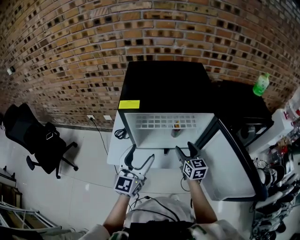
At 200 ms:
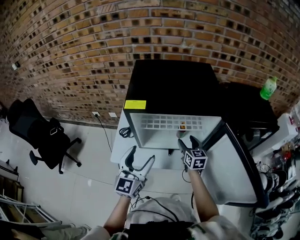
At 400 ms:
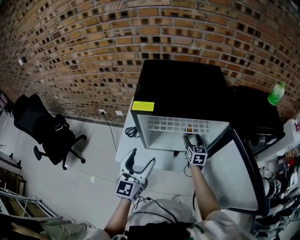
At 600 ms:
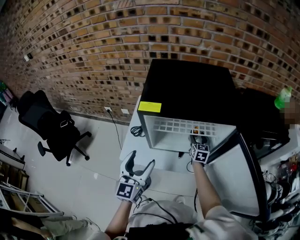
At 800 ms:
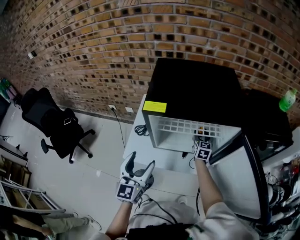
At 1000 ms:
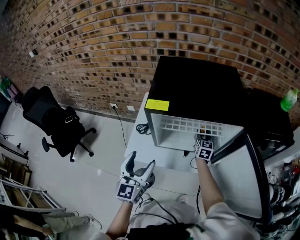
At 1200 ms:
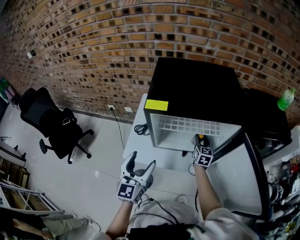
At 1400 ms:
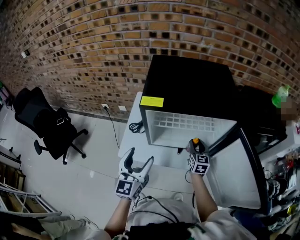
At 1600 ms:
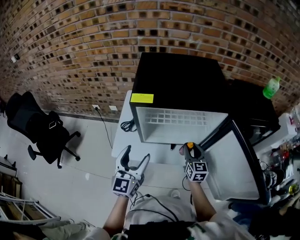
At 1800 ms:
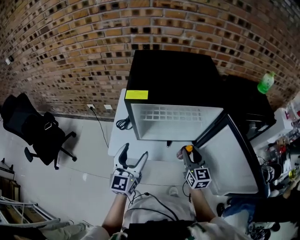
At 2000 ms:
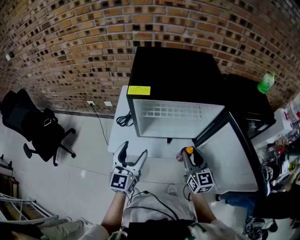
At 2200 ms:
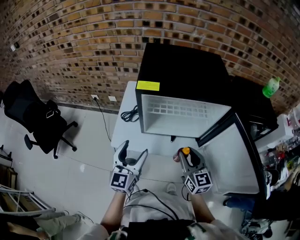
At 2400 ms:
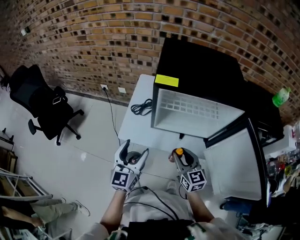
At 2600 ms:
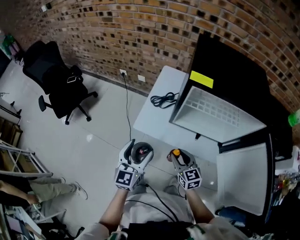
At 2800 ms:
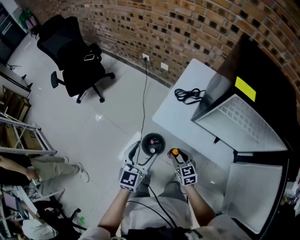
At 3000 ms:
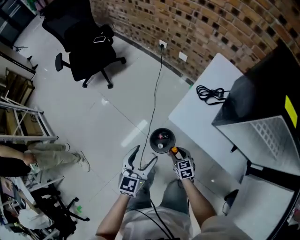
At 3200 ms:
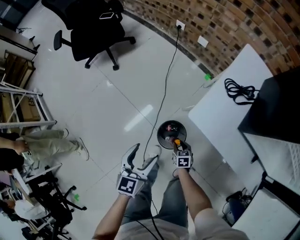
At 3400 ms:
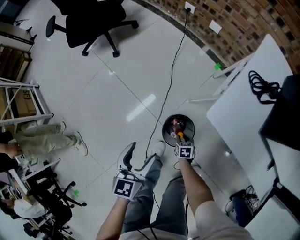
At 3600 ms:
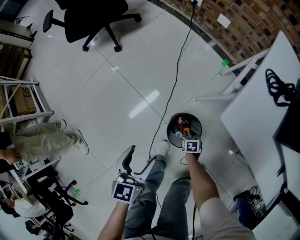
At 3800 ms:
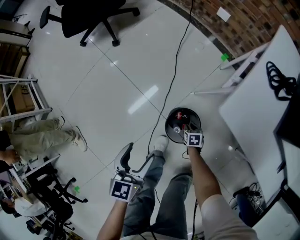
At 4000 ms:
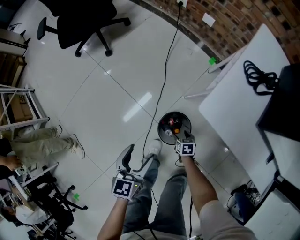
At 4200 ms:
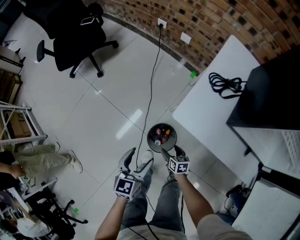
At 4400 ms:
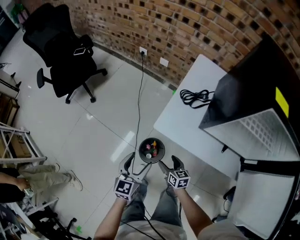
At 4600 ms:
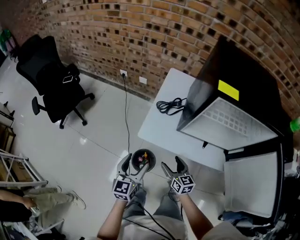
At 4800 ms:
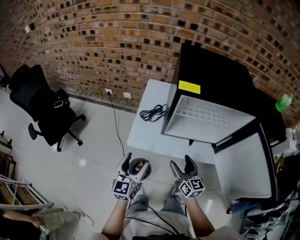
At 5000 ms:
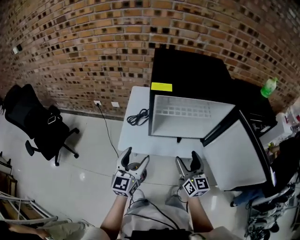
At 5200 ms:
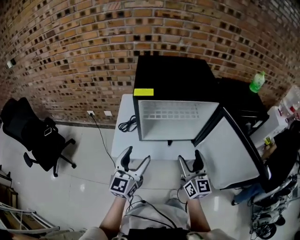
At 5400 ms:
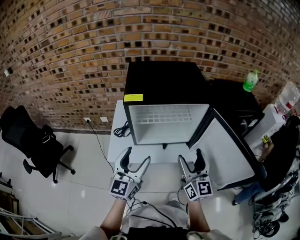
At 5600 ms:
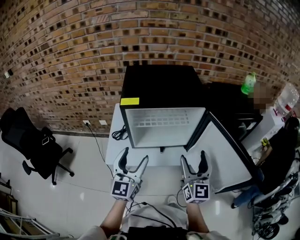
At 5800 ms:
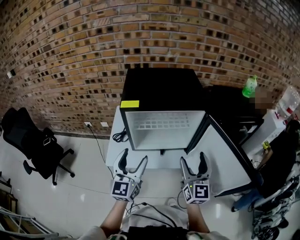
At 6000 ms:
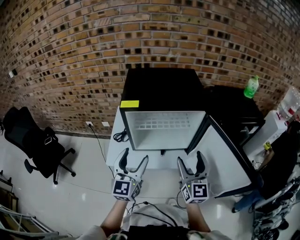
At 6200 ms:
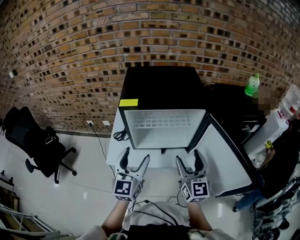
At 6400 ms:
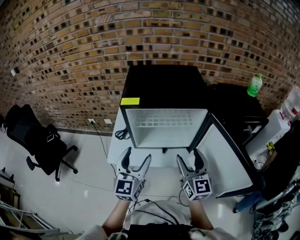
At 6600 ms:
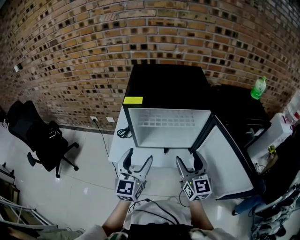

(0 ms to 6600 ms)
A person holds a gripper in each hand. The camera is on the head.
0 ms - 1600 ms: The right gripper moves approximately 15 cm forward and comes back. Meanwhile the left gripper heads to the left, covering roughly 5 cm.
1600 ms - 3200 ms: The left gripper goes roughly 35 cm downward, and rotates approximately 40 degrees. Meanwhile the right gripper moves downward, roughly 50 cm, and angles its fingers downward, by about 40 degrees.
3200 ms - 5000 ms: The left gripper goes approximately 30 cm upward, and swivels some 40 degrees, while the right gripper shifts approximately 60 cm upward, tips its fingers upward by roughly 60 degrees, and opens up.
5000 ms - 6600 ms: The two grippers go some 15 cm to the right and upward.

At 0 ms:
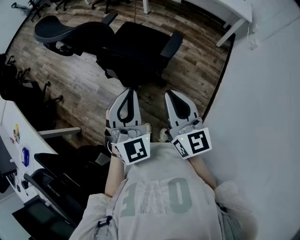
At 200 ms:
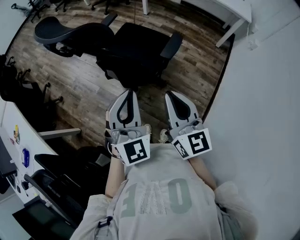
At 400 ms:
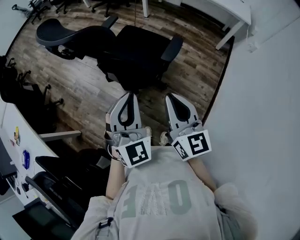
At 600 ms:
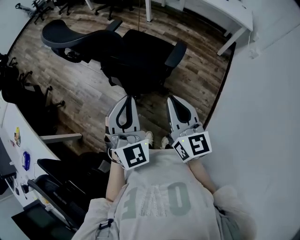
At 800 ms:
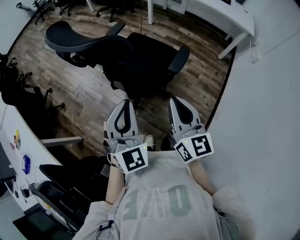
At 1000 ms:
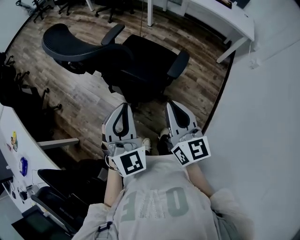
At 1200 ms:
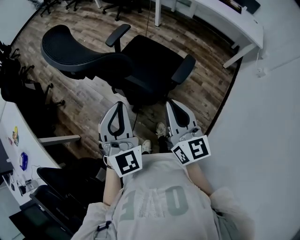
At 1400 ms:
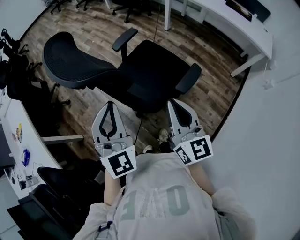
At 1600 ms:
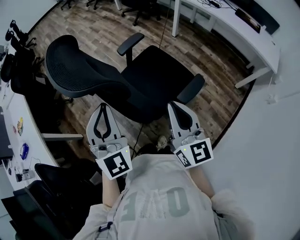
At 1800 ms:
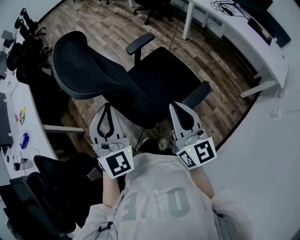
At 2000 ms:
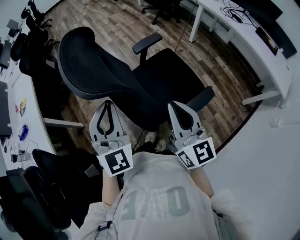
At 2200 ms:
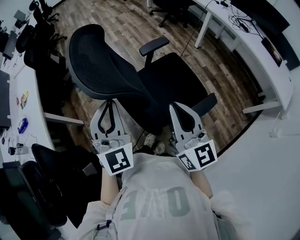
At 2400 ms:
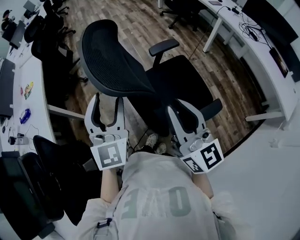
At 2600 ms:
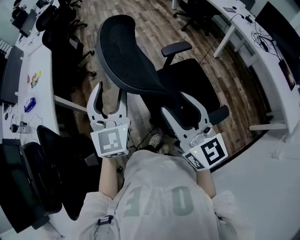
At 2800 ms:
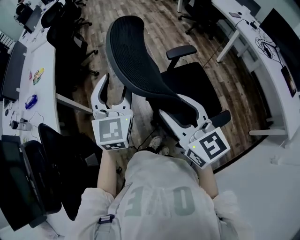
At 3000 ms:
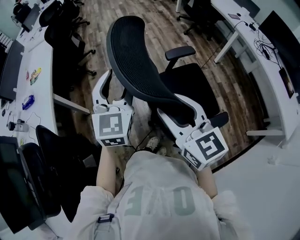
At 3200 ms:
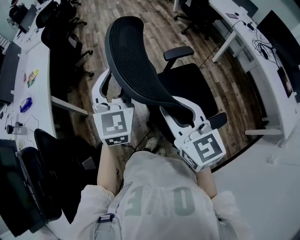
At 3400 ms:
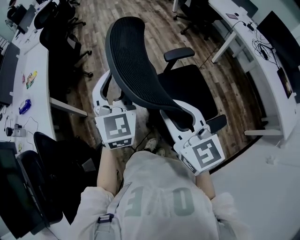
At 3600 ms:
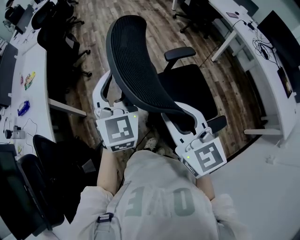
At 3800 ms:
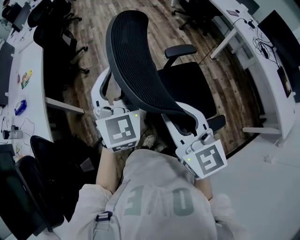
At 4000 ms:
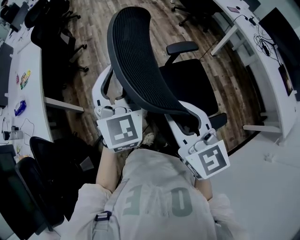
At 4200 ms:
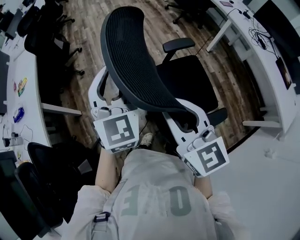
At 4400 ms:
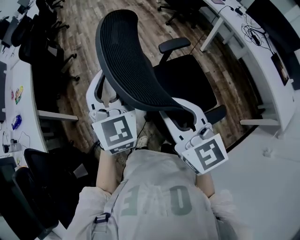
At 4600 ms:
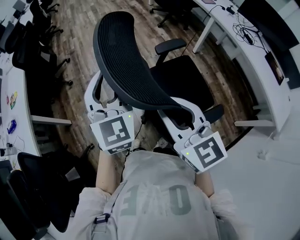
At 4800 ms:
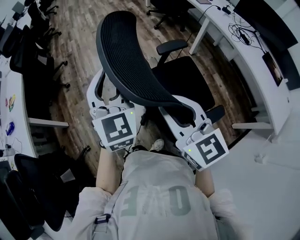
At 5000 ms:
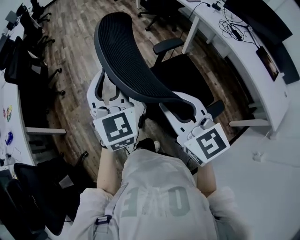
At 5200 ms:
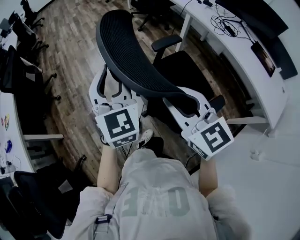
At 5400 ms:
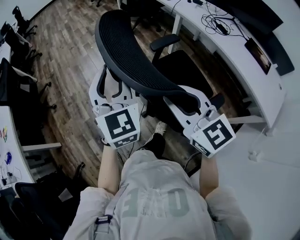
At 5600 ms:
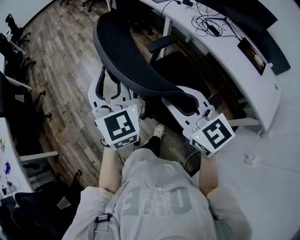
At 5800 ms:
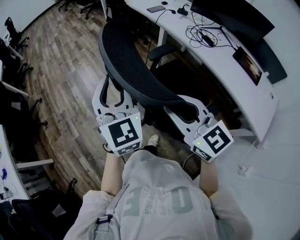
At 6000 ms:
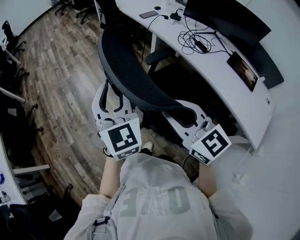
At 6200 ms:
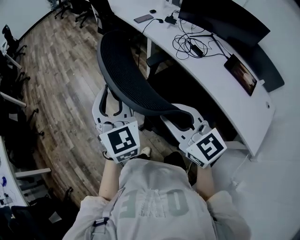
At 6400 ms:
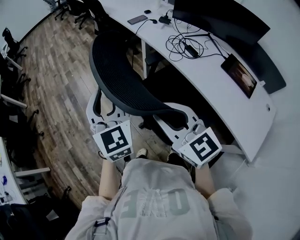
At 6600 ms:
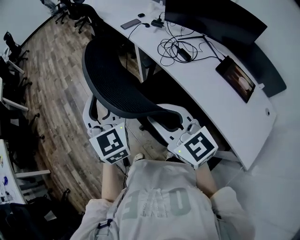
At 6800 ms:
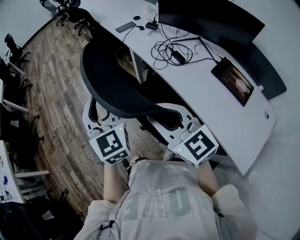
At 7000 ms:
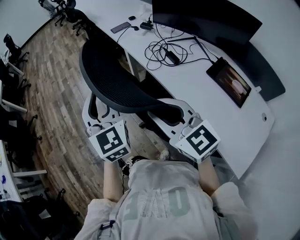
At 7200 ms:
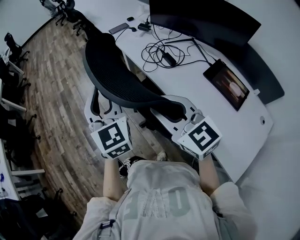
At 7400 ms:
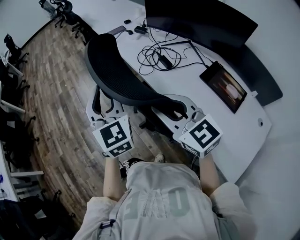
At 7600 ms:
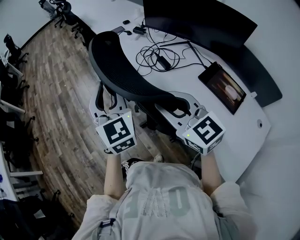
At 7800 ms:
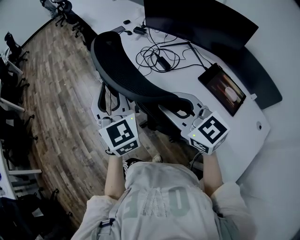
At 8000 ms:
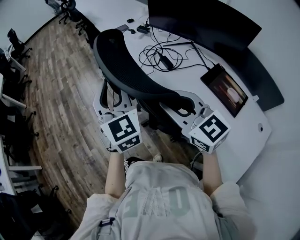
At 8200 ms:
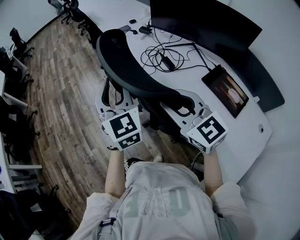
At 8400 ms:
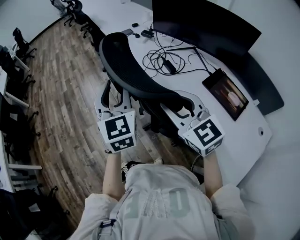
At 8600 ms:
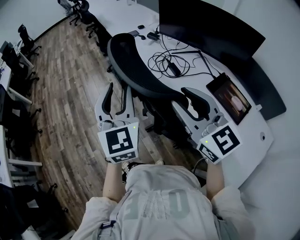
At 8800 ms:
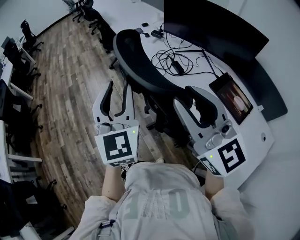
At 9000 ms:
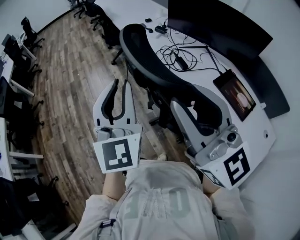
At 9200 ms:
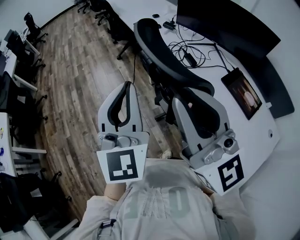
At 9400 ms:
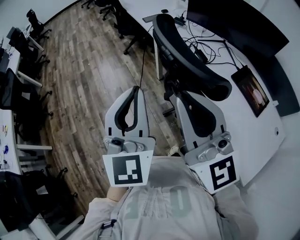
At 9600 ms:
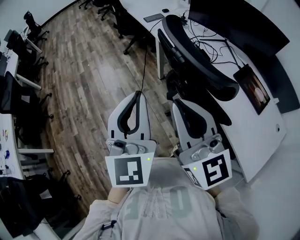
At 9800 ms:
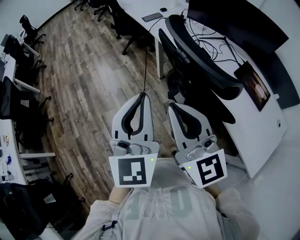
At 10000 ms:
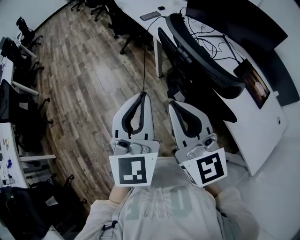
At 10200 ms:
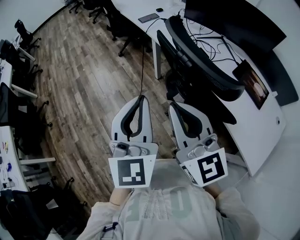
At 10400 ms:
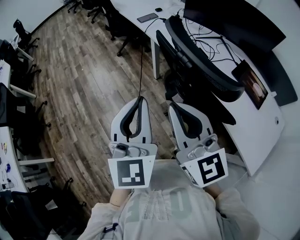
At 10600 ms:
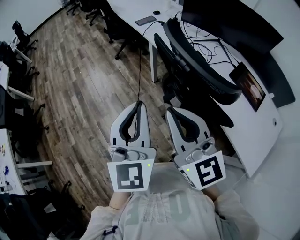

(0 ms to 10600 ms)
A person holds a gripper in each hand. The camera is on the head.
0 ms - 1600 ms: The right gripper moves forward, approximately 20 cm; the left gripper heads forward and to the left, covering approximately 15 cm, and rotates some 20 degrees.
1600 ms - 3000 ms: The left gripper ends up approximately 15 cm from where it was, rotates some 30 degrees, and opens up. The right gripper shifts by roughly 20 cm, rotates some 40 degrees, and opens up.
3000 ms - 4600 ms: Both grippers move to the right, approximately 20 cm. The right gripper closes up.
4600 ms - 6000 ms: The two grippers travel together, to the right, roughly 40 cm.
6000 ms - 7600 ms: Both grippers move to the right, some 35 cm.
7600 ms - 9000 ms: Both grippers move upward and backward, approximately 15 cm. The right gripper turns by approximately 30 degrees.
9000 ms - 10600 ms: The left gripper moves to the left, about 10 cm. Meanwhile the right gripper heads to the left and downward, covering approximately 20 cm, and closes.

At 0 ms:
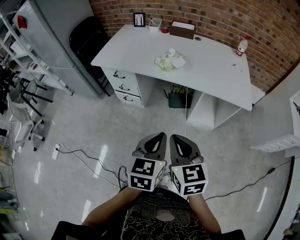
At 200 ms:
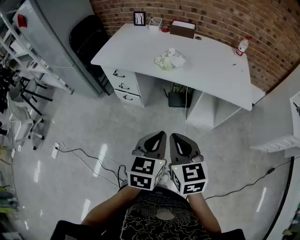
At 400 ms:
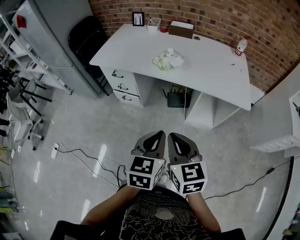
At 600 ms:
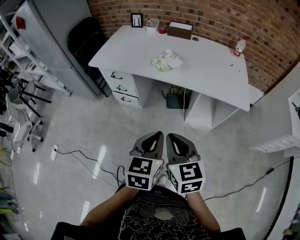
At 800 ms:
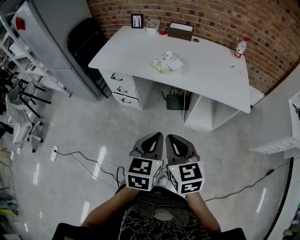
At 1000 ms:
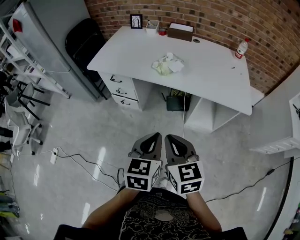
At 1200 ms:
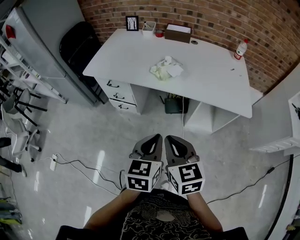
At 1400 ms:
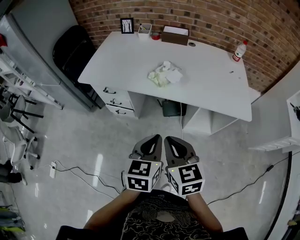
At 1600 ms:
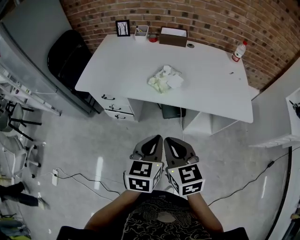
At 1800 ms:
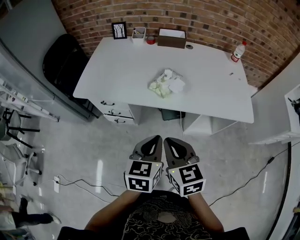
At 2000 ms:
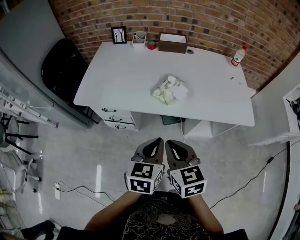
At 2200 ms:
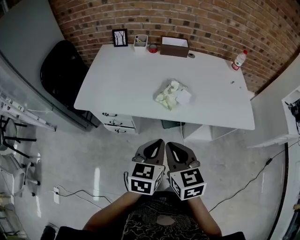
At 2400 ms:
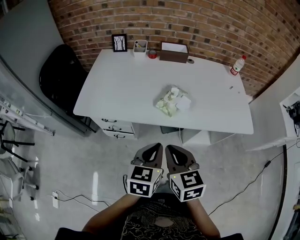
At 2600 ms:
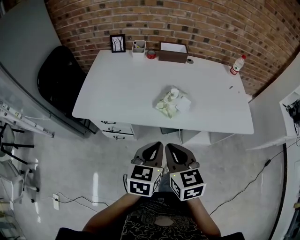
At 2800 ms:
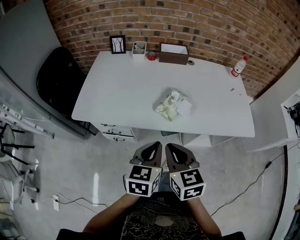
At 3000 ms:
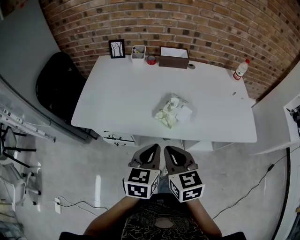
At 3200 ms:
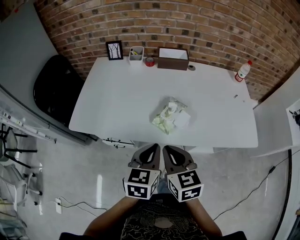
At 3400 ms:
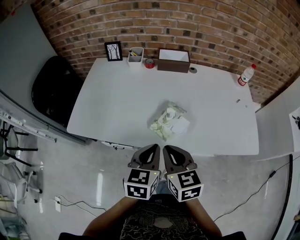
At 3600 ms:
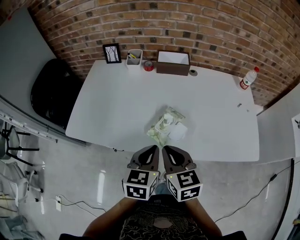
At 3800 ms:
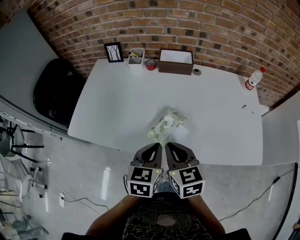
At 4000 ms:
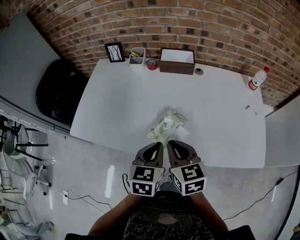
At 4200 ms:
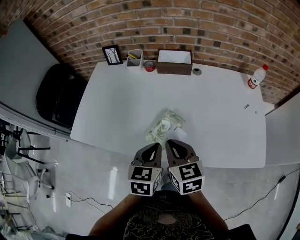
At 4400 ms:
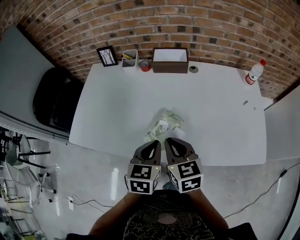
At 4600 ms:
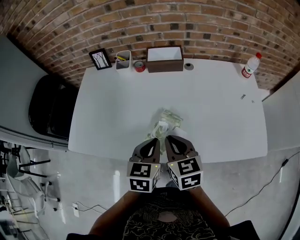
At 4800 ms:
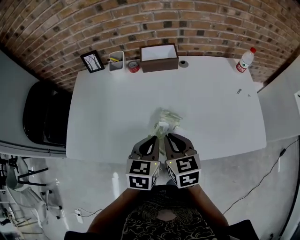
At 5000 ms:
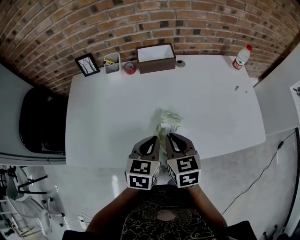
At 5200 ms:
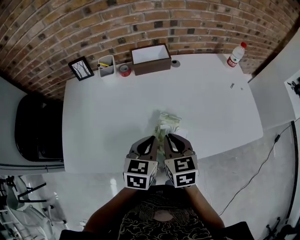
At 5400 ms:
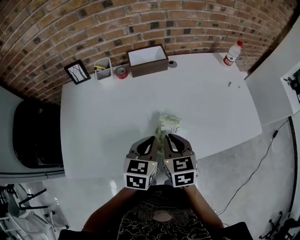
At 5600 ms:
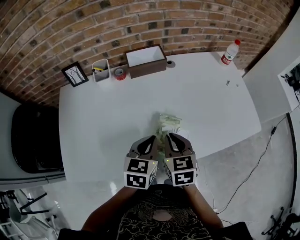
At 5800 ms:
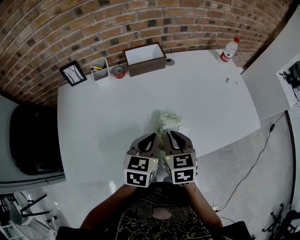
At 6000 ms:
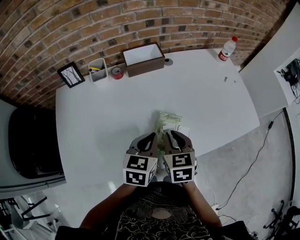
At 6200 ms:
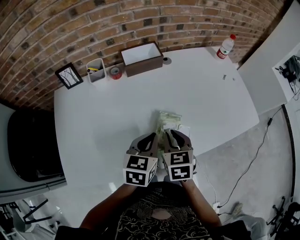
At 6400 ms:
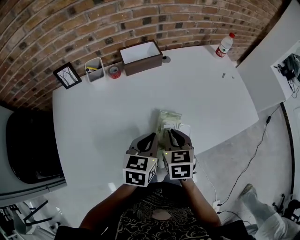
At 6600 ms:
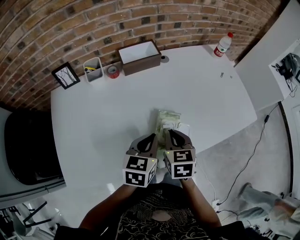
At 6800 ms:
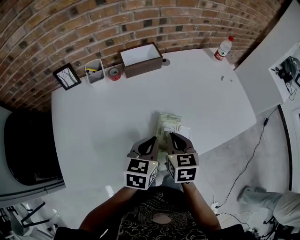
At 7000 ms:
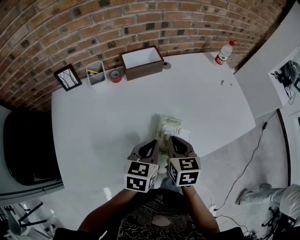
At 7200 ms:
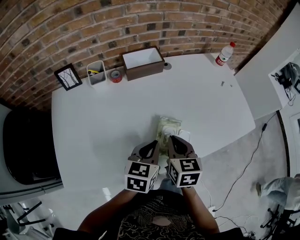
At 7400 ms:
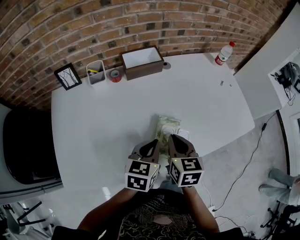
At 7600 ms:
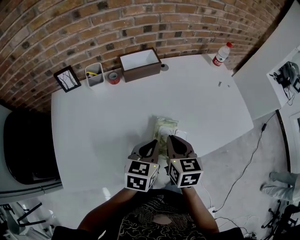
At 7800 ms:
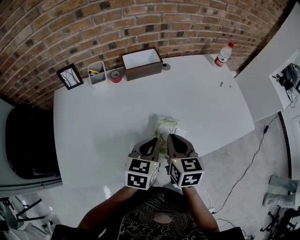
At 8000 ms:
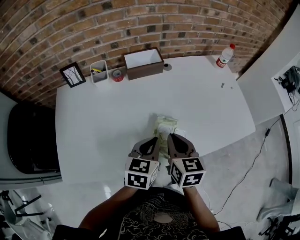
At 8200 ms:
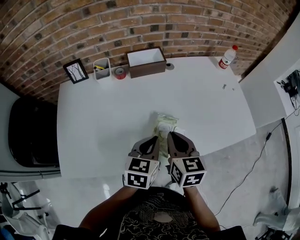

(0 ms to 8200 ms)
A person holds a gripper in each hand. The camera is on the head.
0 ms - 1600 ms: The two grippers go some 15 cm forward.
1600 ms - 3200 ms: Both grippers move forward, some 20 cm.
3200 ms - 5000 ms: Both grippers move forward, roughly 15 cm.
5000 ms - 6600 ms: The right gripper changes its angle by about 20 degrees.
6600 ms - 8200 ms: The right gripper shifts about 5 cm upward.
